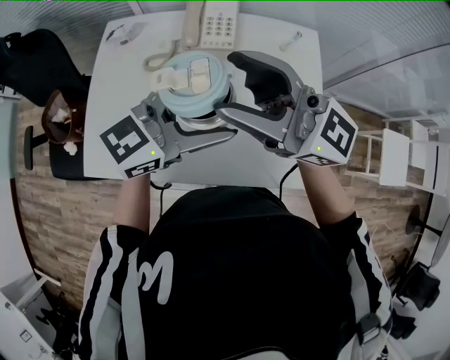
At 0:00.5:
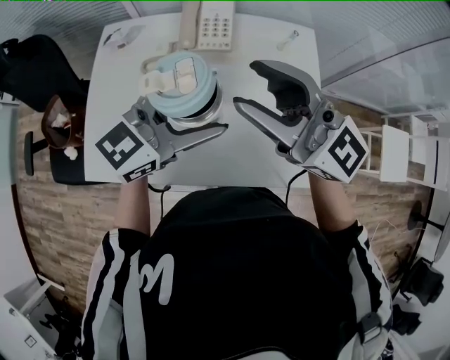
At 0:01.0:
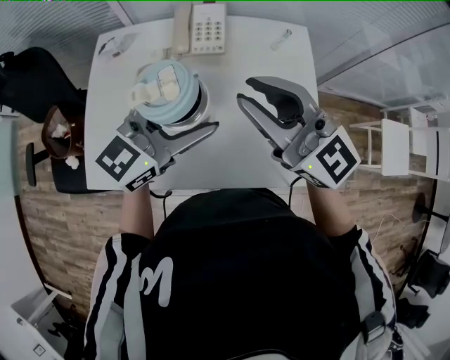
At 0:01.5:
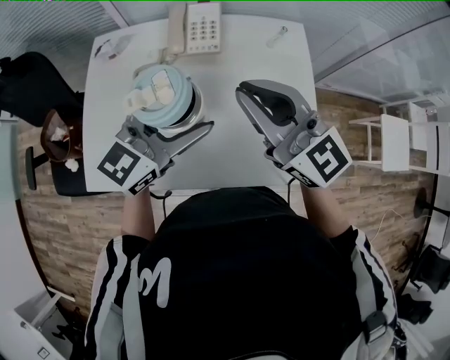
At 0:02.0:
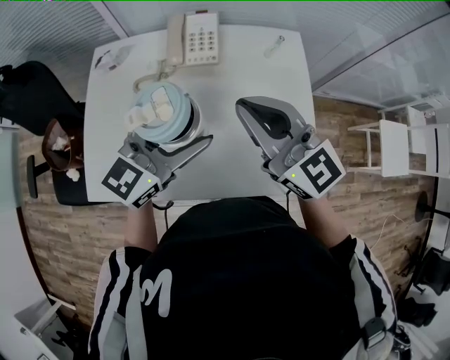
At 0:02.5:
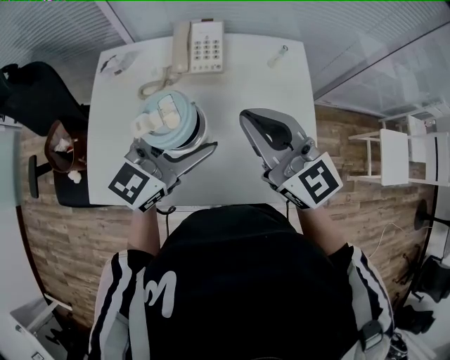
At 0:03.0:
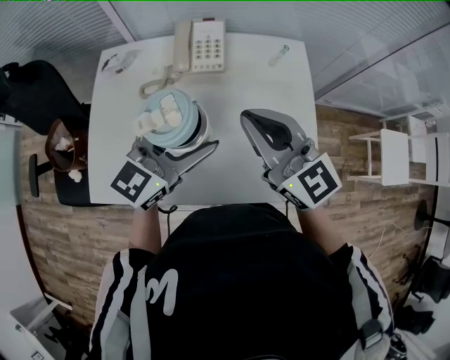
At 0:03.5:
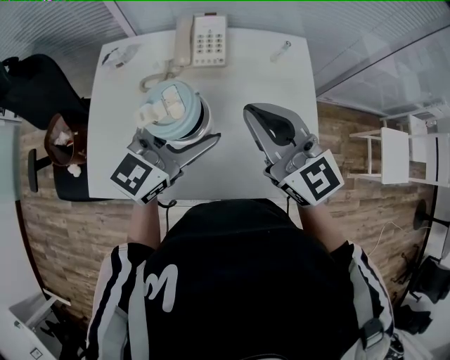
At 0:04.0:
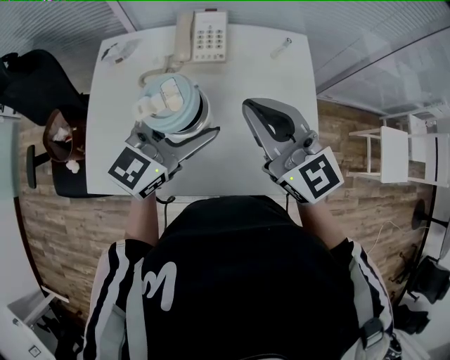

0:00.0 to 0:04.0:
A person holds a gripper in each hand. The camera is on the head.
0:00.0 to 0:02.0: The right gripper shifts about 5 cm downward, rotates about 30 degrees, and closes.
0:02.0 to 0:04.0: Neither gripper changes place.

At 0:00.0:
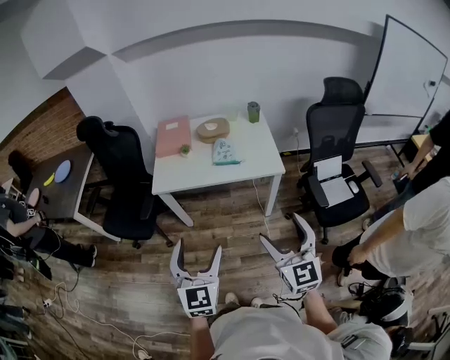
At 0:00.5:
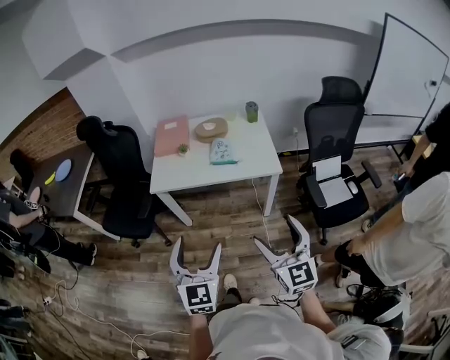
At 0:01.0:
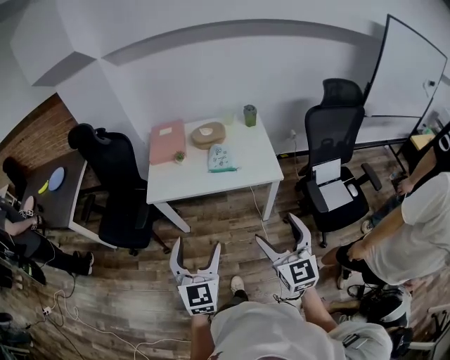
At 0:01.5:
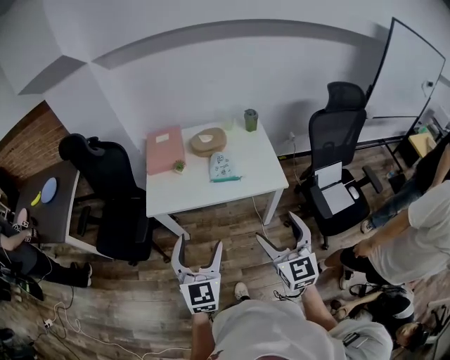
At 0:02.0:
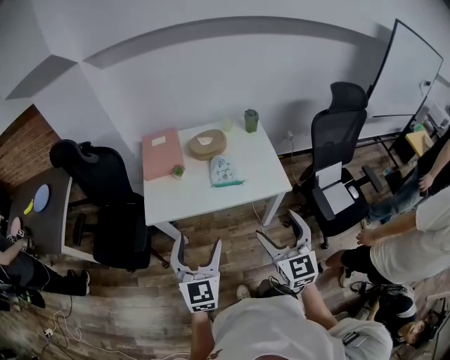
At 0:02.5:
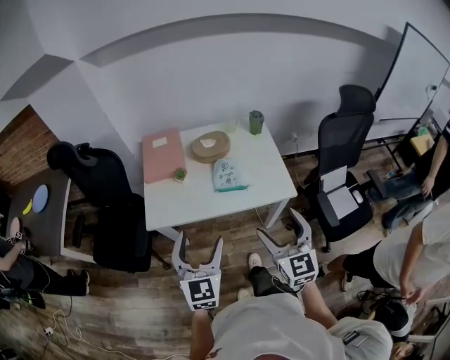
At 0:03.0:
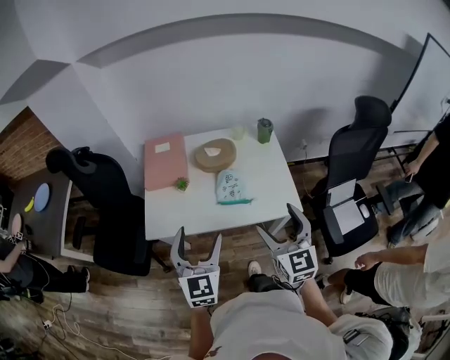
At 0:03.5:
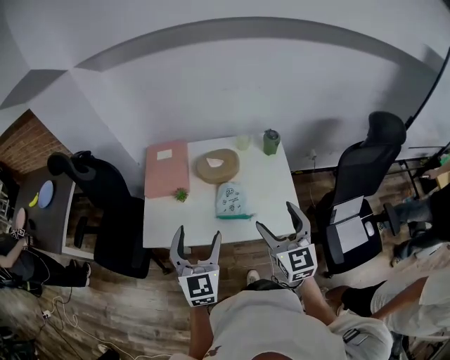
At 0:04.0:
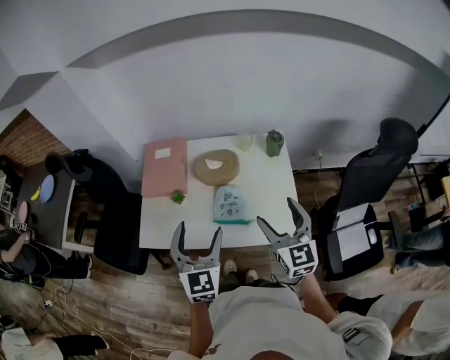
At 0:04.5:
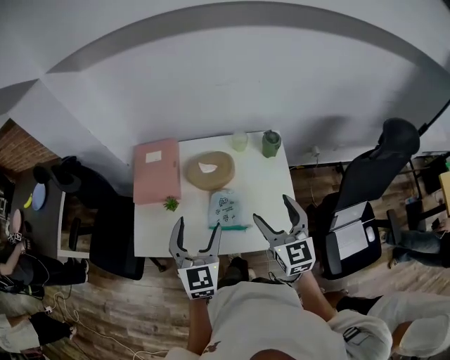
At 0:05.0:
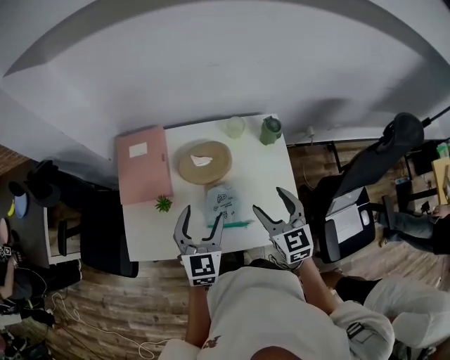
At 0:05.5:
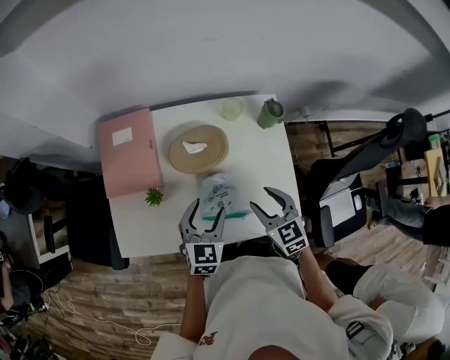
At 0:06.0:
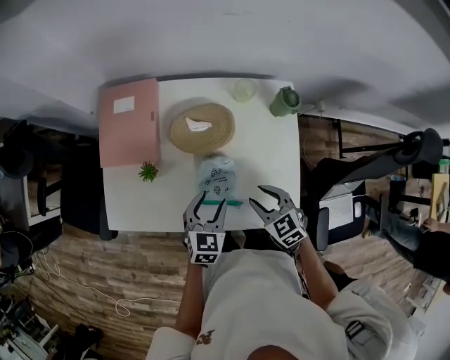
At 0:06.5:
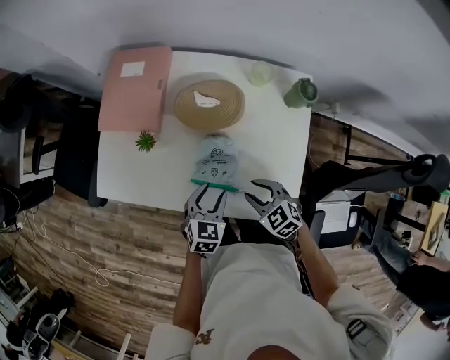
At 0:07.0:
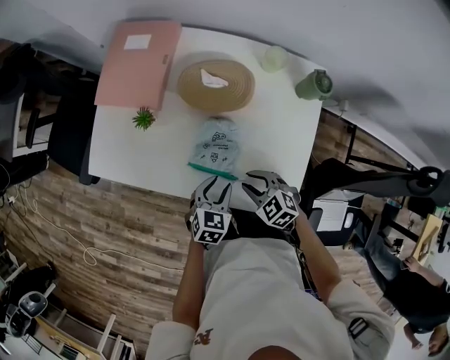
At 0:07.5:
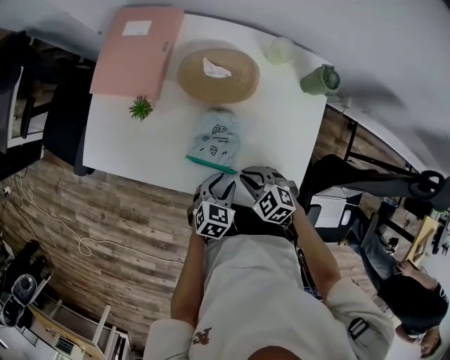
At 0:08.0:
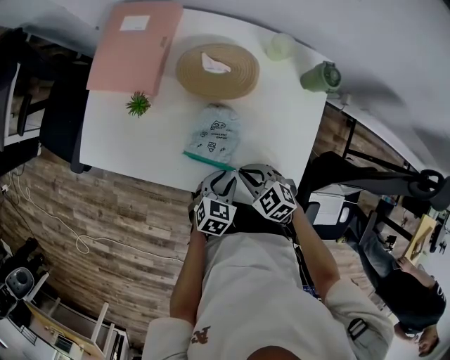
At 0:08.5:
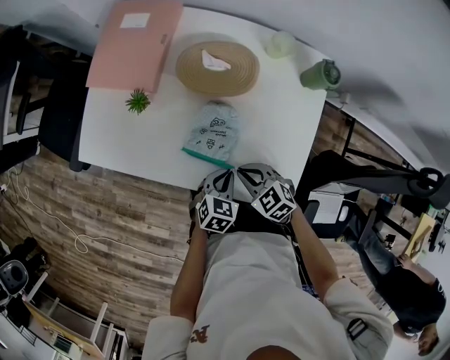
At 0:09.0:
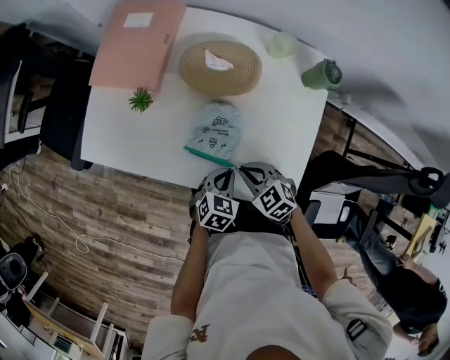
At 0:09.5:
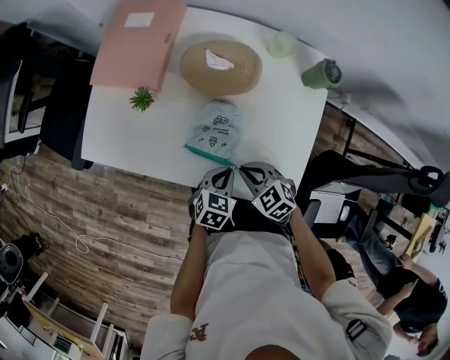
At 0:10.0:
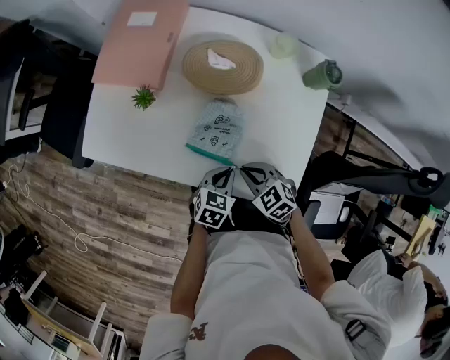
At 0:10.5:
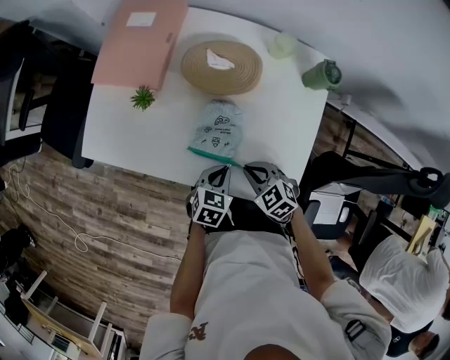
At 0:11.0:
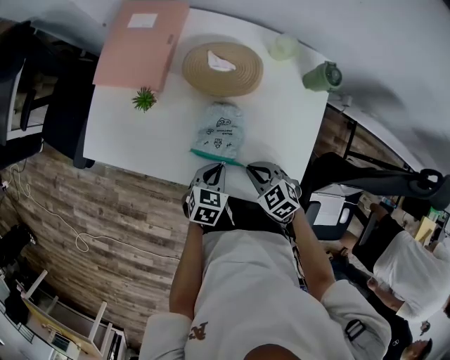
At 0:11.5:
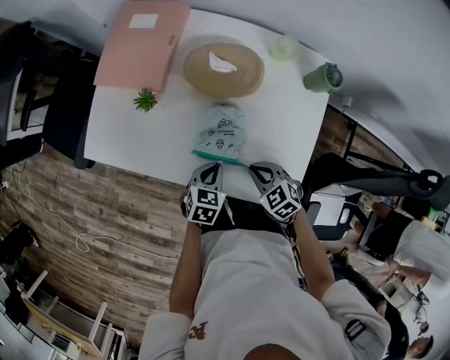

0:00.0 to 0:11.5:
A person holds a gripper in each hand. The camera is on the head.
0:00.0 to 0:02.0: Both grippers travel together forward, about 20 cm.
0:02.0 to 0:04.0: The two grippers go some 30 cm forward.
0:04.0 to 0:06.0: The left gripper heads downward and forward, covering roughly 30 cm, rotates some 30 degrees, and closes its fingers, while the right gripper travels downward by about 25 cm, tips its fingers downward by roughly 40 degrees, and closes up.
0:06.0 to 0:07.5: The right gripper shifts approximately 10 cm downward, and swivels about 30 degrees. Meanwhile the left gripper travels downward and backward by some 15 cm.
0:07.5 to 0:09.5: The left gripper closes its fingers.
0:09.5 to 0:11.5: The left gripper changes place by approximately 5 cm.

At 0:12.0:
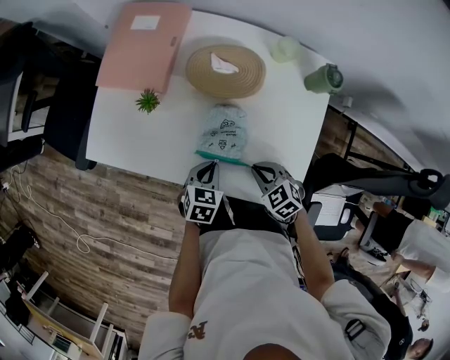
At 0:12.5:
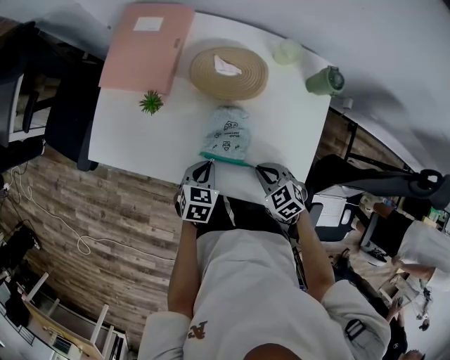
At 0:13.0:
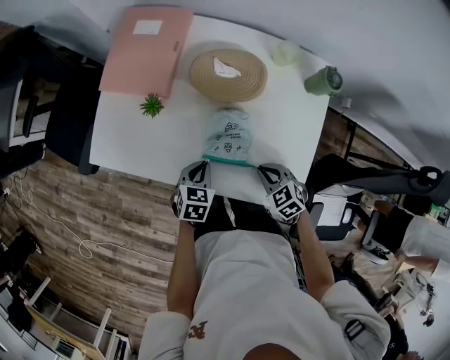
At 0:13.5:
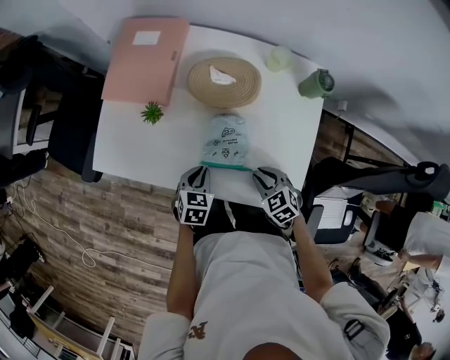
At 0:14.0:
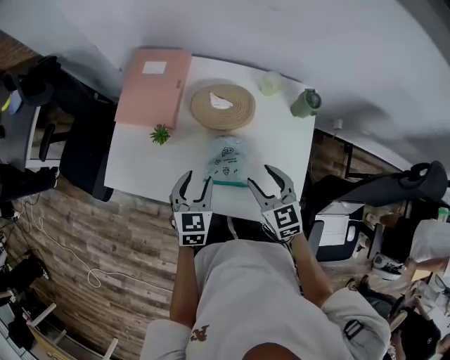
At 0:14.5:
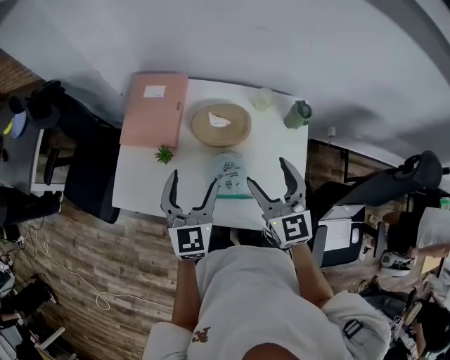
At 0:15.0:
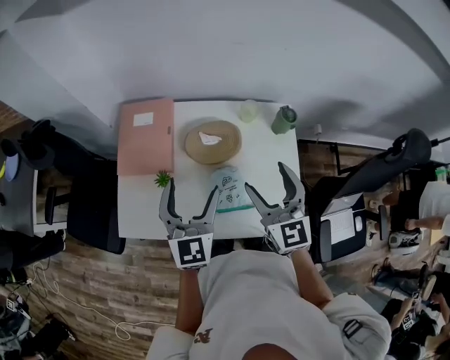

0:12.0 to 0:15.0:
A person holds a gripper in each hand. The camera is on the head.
0:12.0 to 0:13.5: The grippers move only a little.
0:13.5 to 0:15.0: Both grippers move upward, some 30 cm. The left gripper tips its fingers upward by about 50 degrees, and opens its fingers, while the right gripper tilts its fingers approximately 50 degrees upward, and opens its fingers.

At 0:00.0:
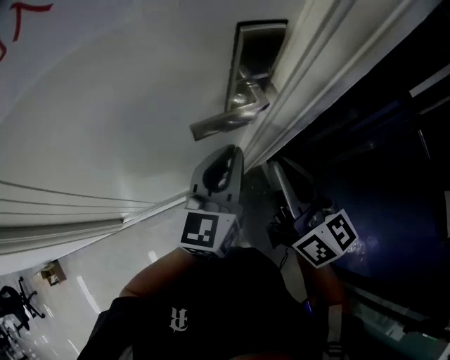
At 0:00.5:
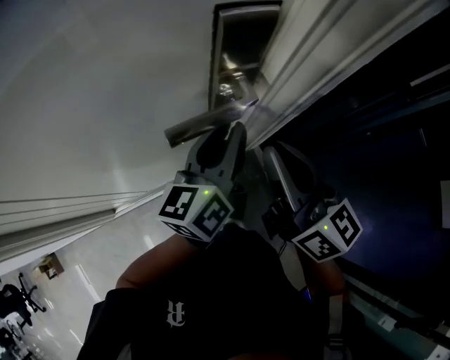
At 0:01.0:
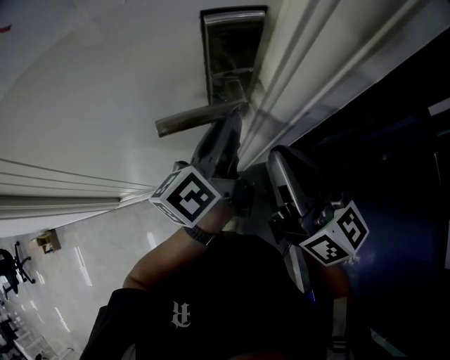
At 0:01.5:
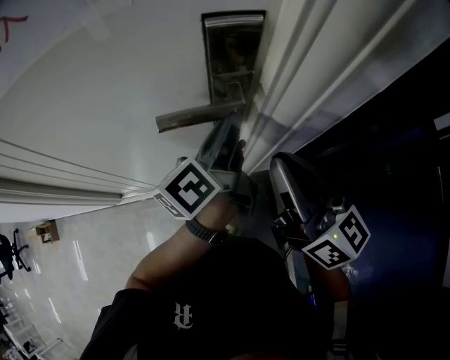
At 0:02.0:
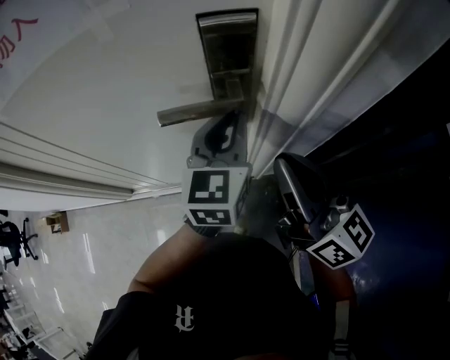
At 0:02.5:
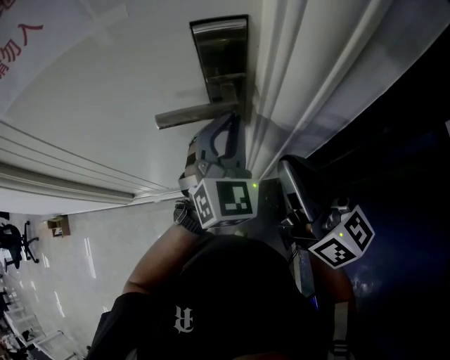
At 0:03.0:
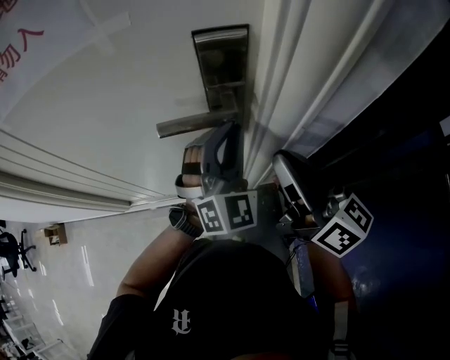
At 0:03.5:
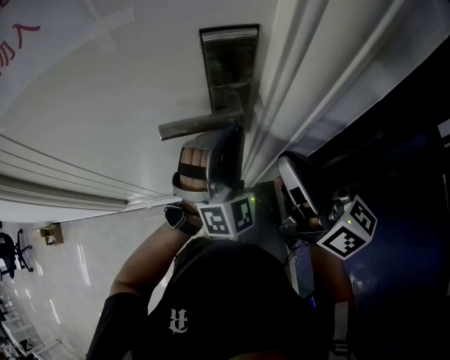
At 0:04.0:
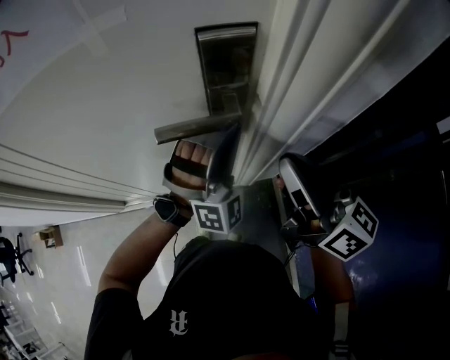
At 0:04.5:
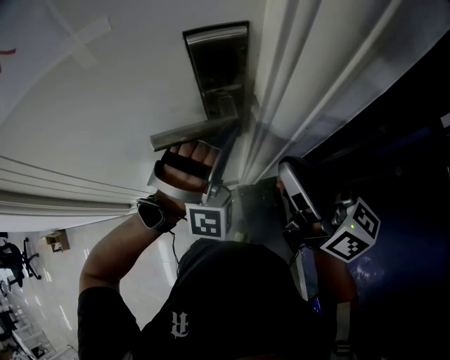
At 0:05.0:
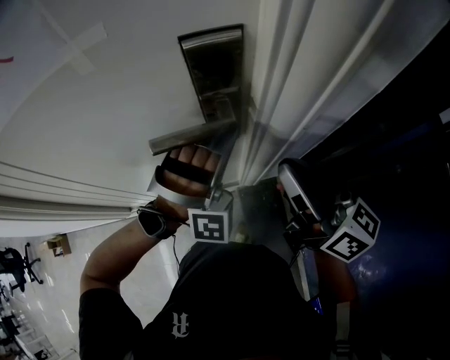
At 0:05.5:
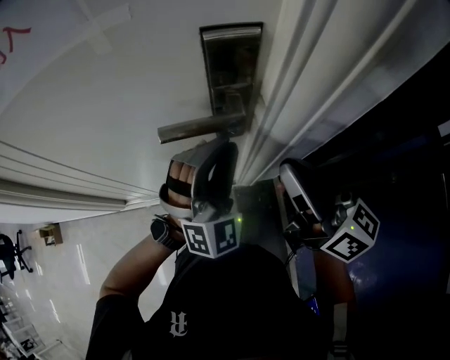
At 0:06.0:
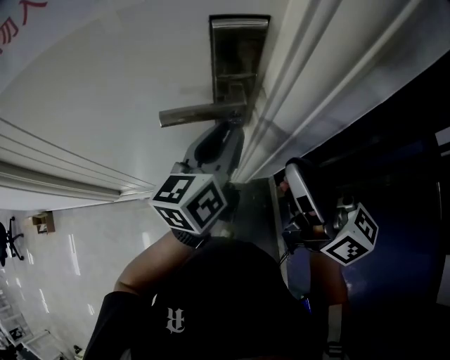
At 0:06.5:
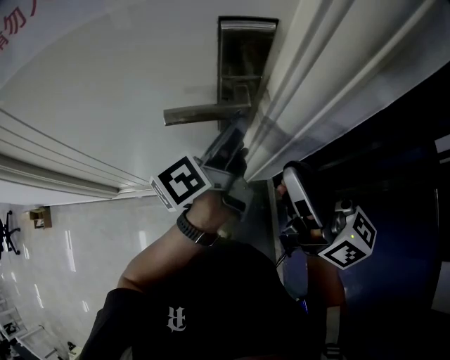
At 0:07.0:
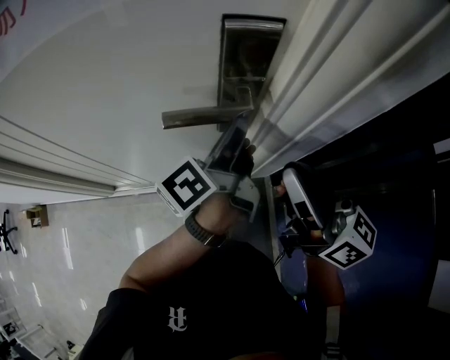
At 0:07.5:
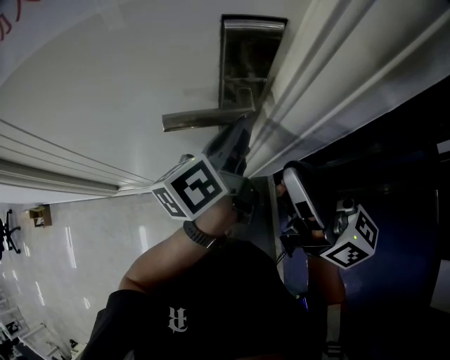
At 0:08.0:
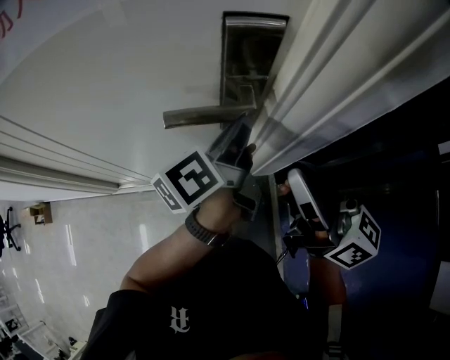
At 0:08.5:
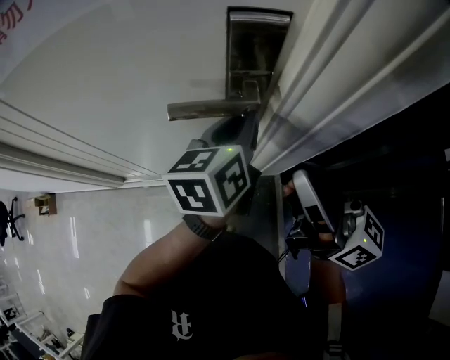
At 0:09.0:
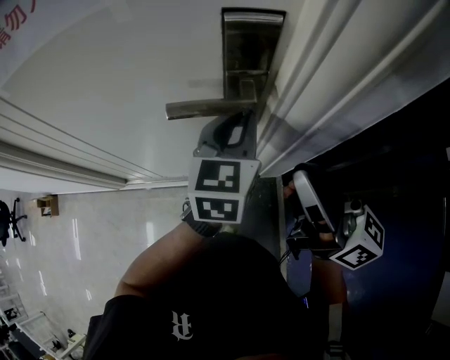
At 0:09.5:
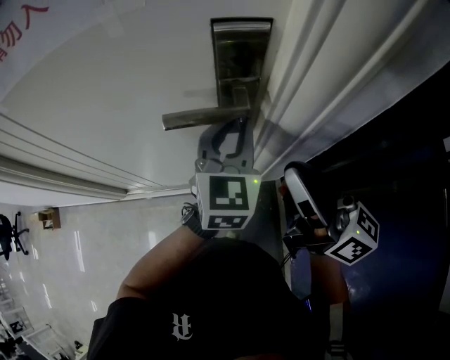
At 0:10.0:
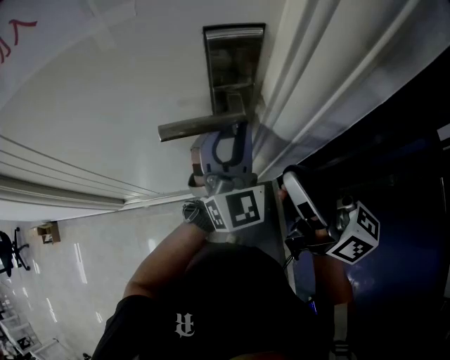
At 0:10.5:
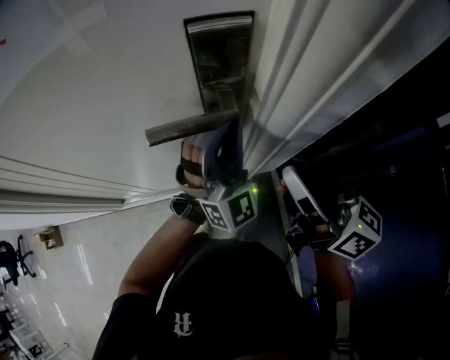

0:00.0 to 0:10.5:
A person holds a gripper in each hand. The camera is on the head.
0:00.0 to 0:02.0: The left gripper travels forward by some 5 cm, and changes its angle by approximately 30 degrees. The right gripper ends up roughly 5 cm from where it was, and changes its angle by roughly 30 degrees.
0:02.0 to 0:04.0: The left gripper rotates around the line of its fingers by some 80 degrees, clockwise from behind.
0:04.0 to 0:06.5: The left gripper rotates around the line of its fingers by approximately 140 degrees, counterclockwise from behind.
0:06.5 to 0:08.5: The left gripper rotates roughly 40 degrees.
0:08.5 to 0:10.5: The left gripper rotates around the line of its fingers by about 80 degrees, clockwise from behind.
